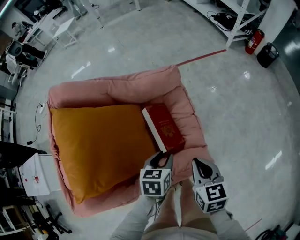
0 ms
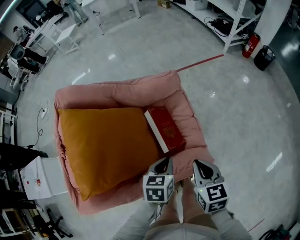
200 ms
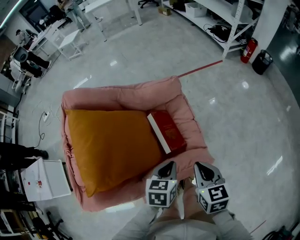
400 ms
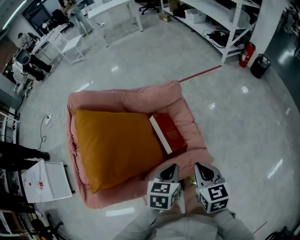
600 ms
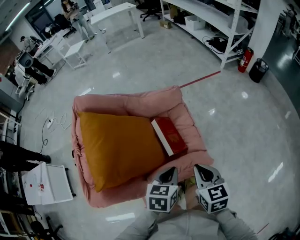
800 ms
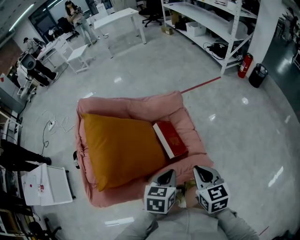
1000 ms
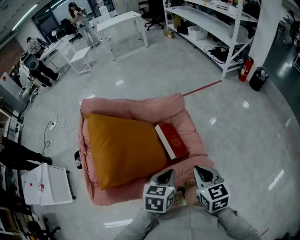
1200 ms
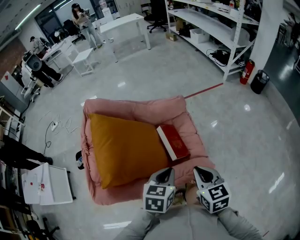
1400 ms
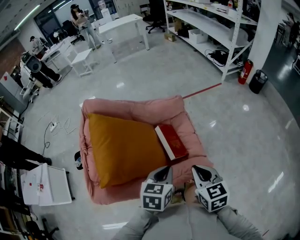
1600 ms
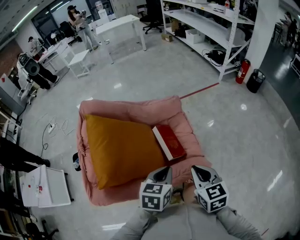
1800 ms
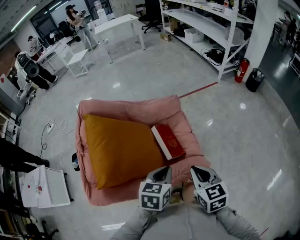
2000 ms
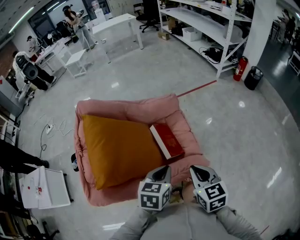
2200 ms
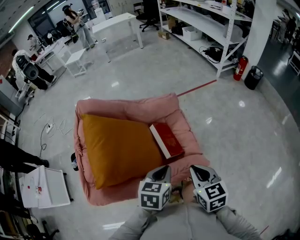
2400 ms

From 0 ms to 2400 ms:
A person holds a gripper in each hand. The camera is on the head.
From 0 ms to 1200 ms: The left gripper goes roughly 15 cm upward and backward, and closes; the right gripper moves upward and backward, approximately 10 cm.
From 1200 ms to 2400 ms: There are only small adjustments of the grippers.

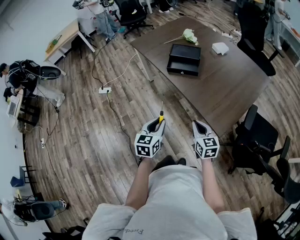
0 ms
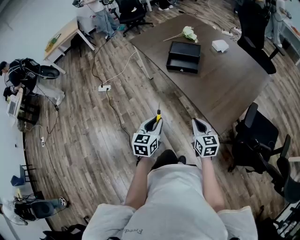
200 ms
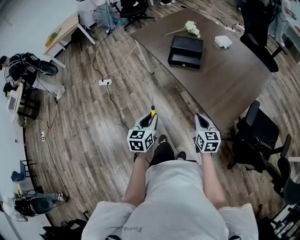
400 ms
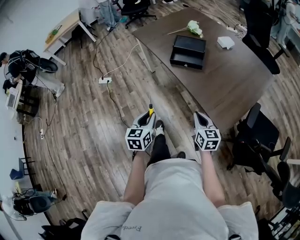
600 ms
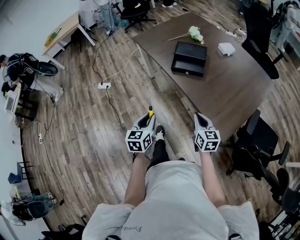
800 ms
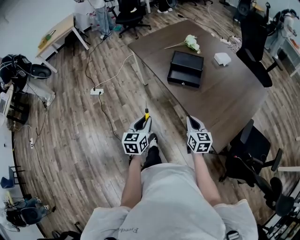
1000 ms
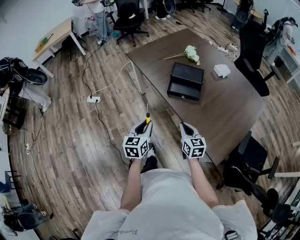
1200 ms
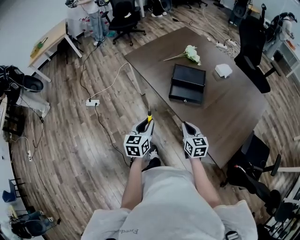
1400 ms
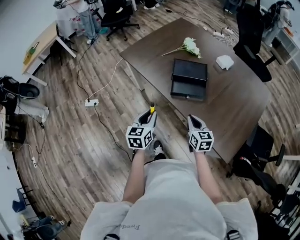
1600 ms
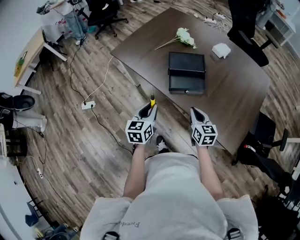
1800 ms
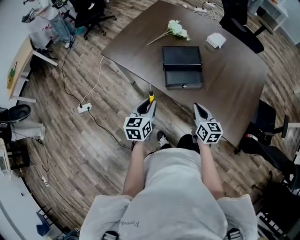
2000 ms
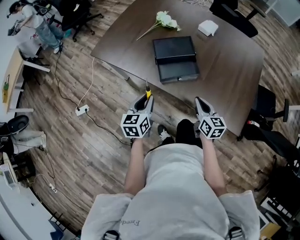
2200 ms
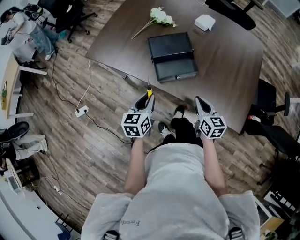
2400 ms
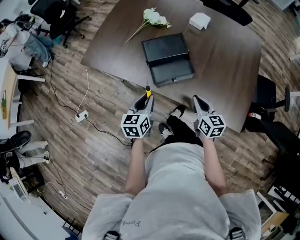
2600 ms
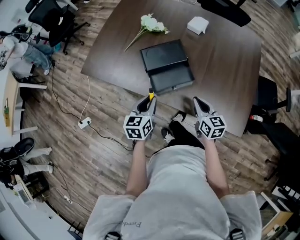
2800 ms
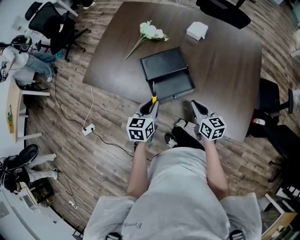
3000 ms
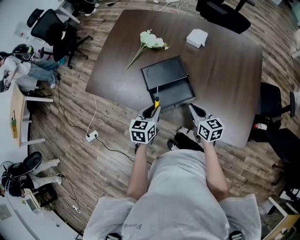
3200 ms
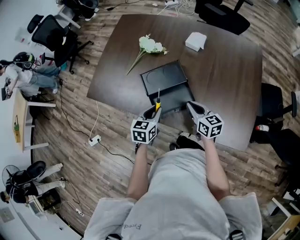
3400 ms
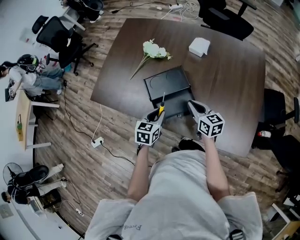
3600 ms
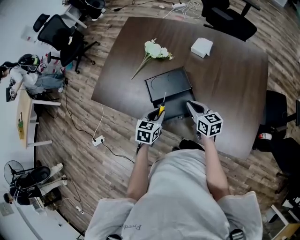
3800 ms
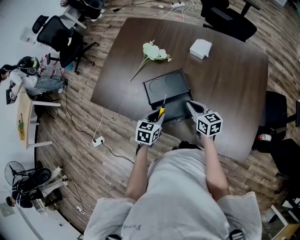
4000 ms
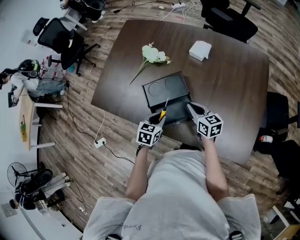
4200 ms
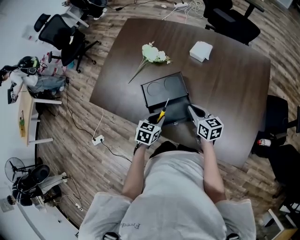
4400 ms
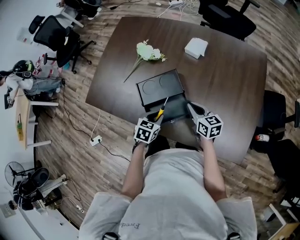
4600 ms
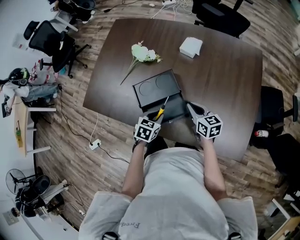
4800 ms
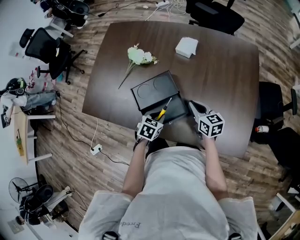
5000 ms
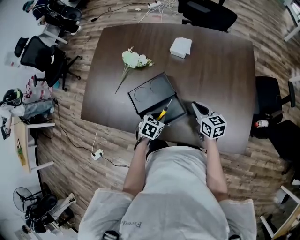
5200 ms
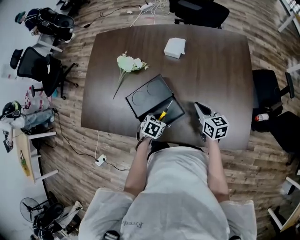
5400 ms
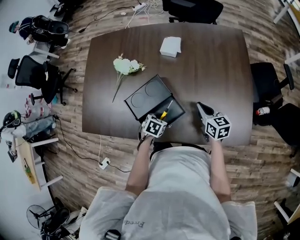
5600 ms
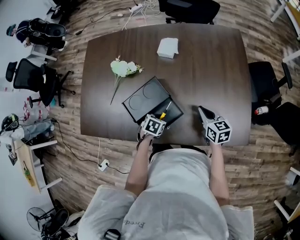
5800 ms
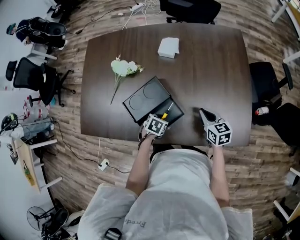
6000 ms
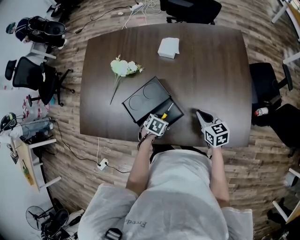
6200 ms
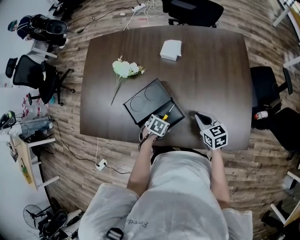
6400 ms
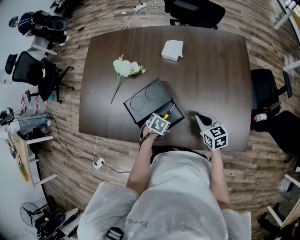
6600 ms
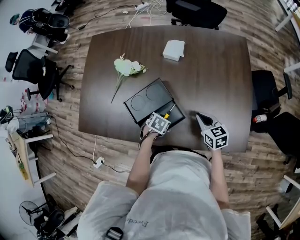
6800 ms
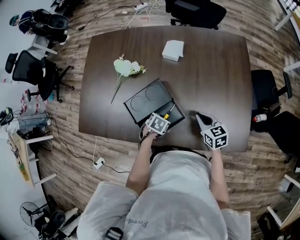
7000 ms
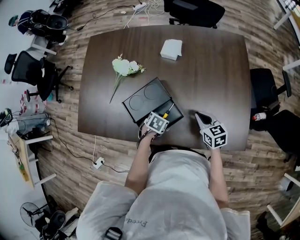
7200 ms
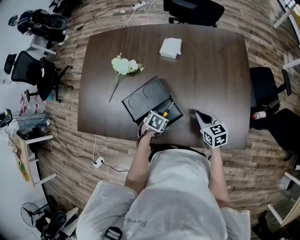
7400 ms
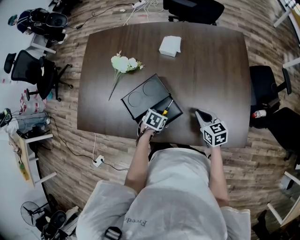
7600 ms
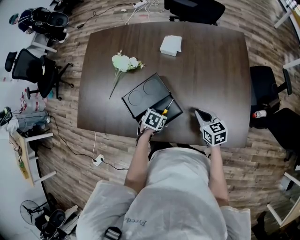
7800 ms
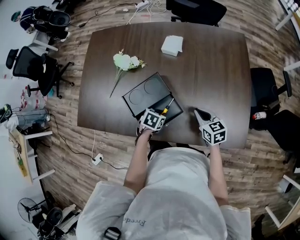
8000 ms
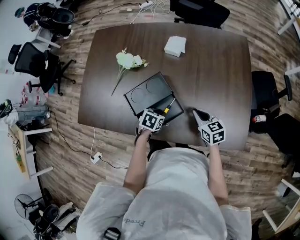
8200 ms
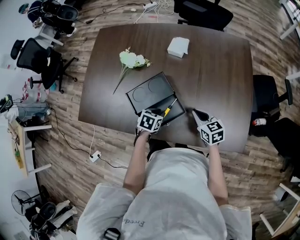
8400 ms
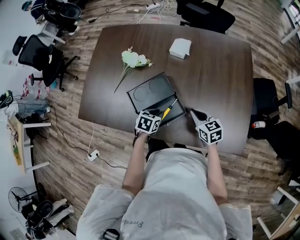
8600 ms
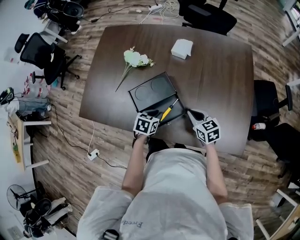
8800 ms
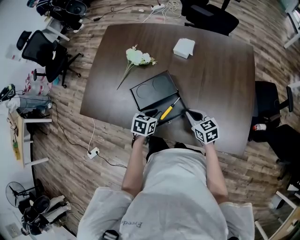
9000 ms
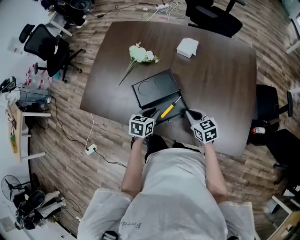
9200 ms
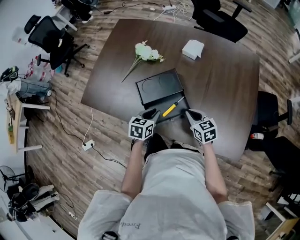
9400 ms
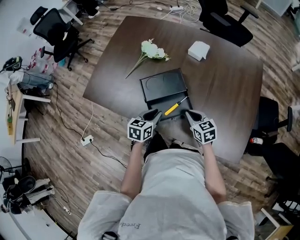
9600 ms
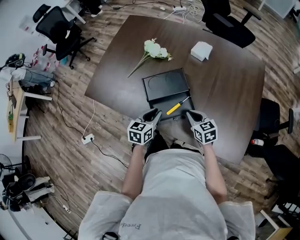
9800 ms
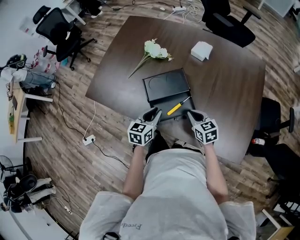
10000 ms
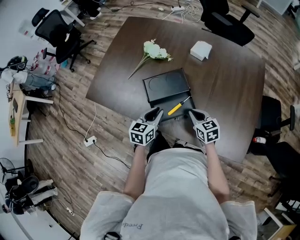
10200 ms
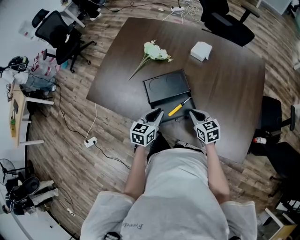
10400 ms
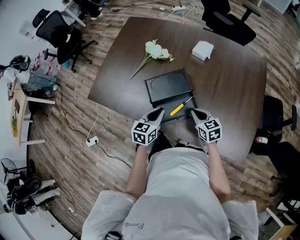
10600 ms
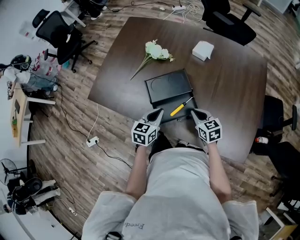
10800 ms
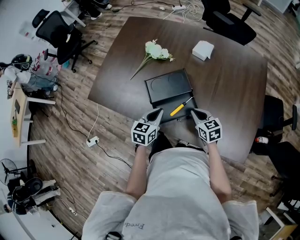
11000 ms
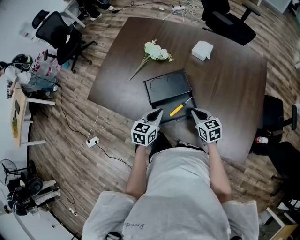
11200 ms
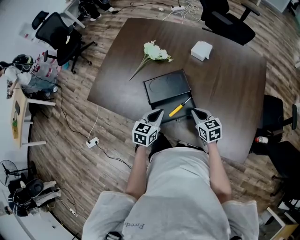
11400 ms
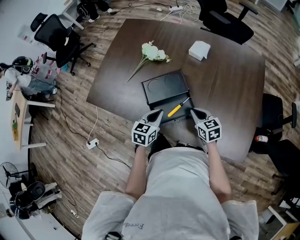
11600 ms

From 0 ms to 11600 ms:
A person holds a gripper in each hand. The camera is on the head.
From 0 ms to 1400 ms: Both grippers move forward and to the left, approximately 25 cm.
From 1400 ms to 2800 ms: The right gripper shifts by approximately 15 cm, and turns by roughly 30 degrees; the left gripper changes place by about 25 cm, and turns by approximately 30 degrees.
From 2800 ms to 4400 ms: The right gripper travels forward by roughly 15 cm, while the left gripper shifts about 15 cm forward, downward and to the right, and changes its angle by some 30 degrees.
From 4400 ms to 5800 ms: The right gripper shifts by about 10 cm, and rotates roughly 20 degrees. Meanwhile the left gripper goes some 10 cm downward, and swivels about 30 degrees.
From 5800 ms to 7200 ms: The grippers make only small movements.
From 7200 ms to 8800 ms: The left gripper shifts about 5 cm upward, and rotates about 20 degrees; the right gripper heads to the left, covering some 5 cm.
From 8800 ms to 10200 ms: The left gripper travels upward and to the left by roughly 10 cm, and swivels about 30 degrees. Meanwhile the right gripper changes place by roughly 5 cm.
From 10200 ms to 11600 ms: The grippers move only a little.

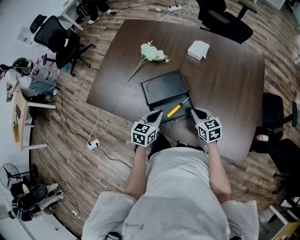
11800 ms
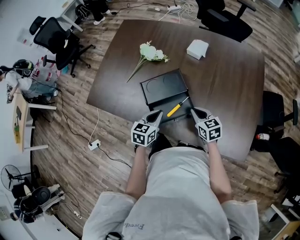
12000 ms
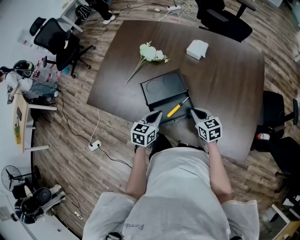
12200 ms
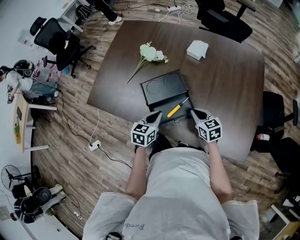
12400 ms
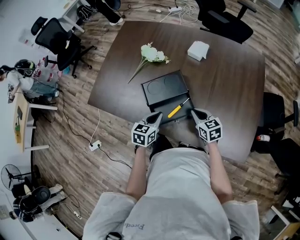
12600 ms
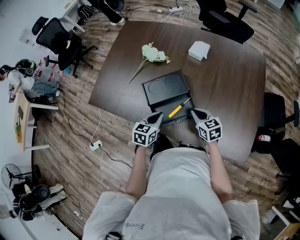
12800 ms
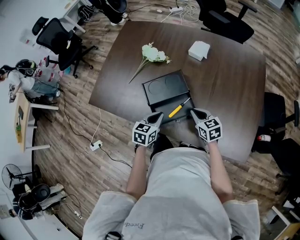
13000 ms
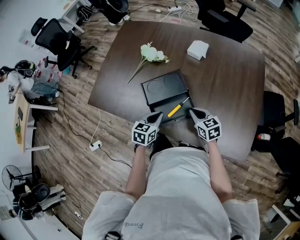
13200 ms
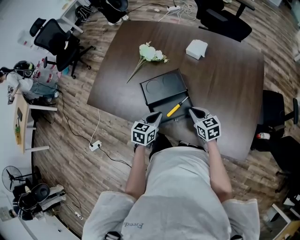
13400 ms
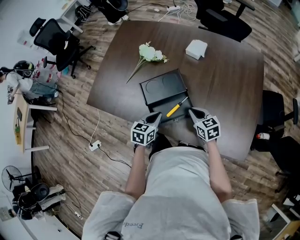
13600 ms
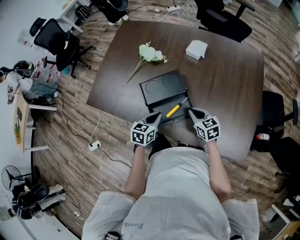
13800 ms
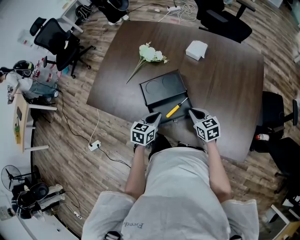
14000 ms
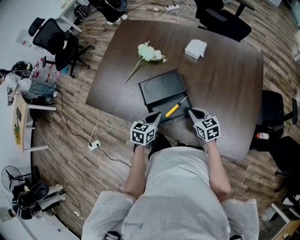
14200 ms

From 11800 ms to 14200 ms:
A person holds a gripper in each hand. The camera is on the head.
From 11800 ms to 13000 ms: There are only small adjustments of the grippers.
From 13000 ms to 14200 ms: The two grippers keep their place.

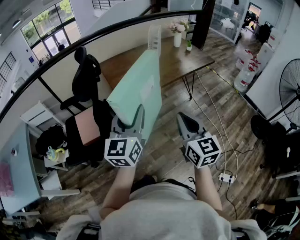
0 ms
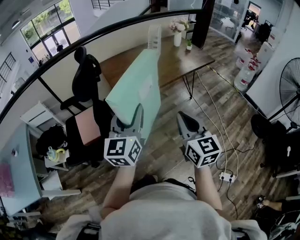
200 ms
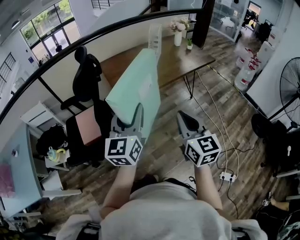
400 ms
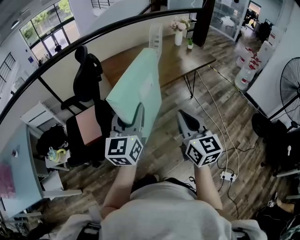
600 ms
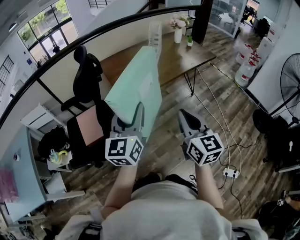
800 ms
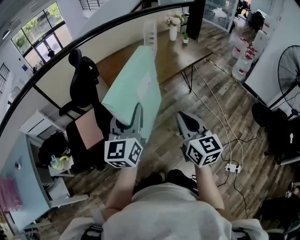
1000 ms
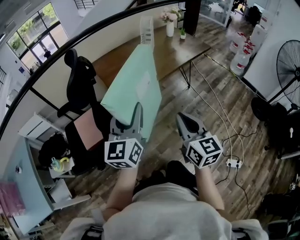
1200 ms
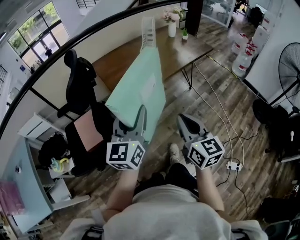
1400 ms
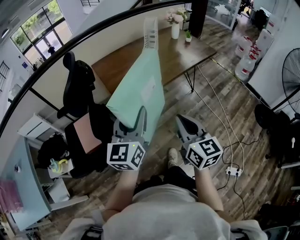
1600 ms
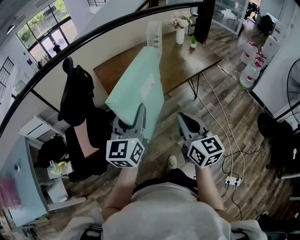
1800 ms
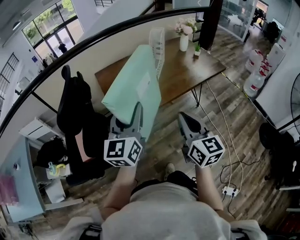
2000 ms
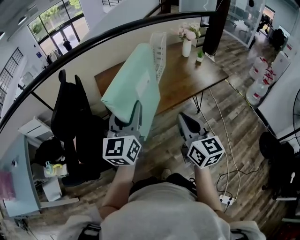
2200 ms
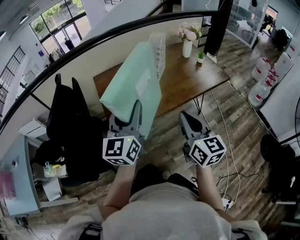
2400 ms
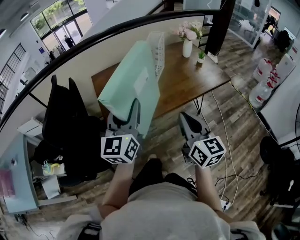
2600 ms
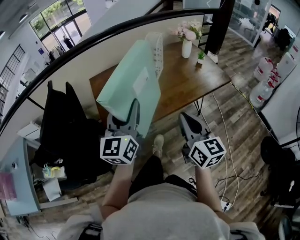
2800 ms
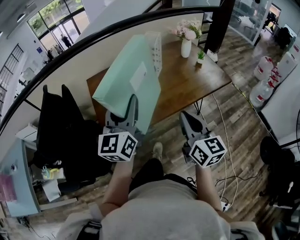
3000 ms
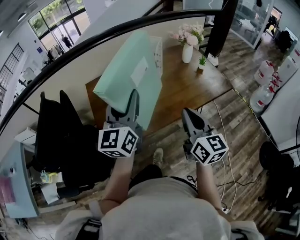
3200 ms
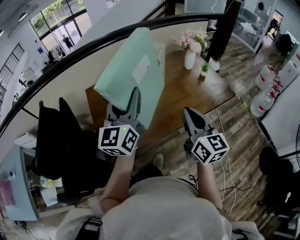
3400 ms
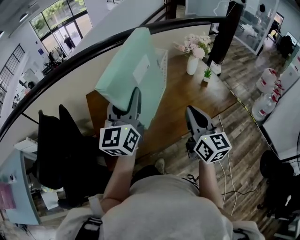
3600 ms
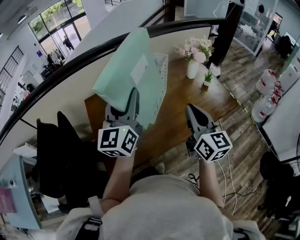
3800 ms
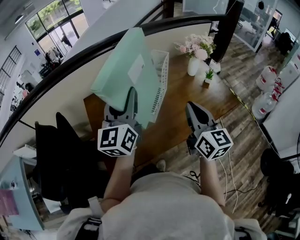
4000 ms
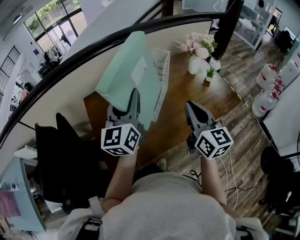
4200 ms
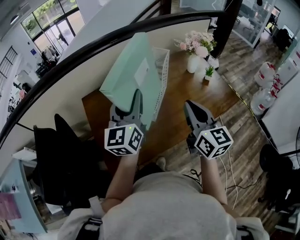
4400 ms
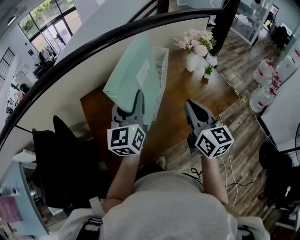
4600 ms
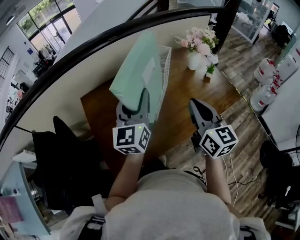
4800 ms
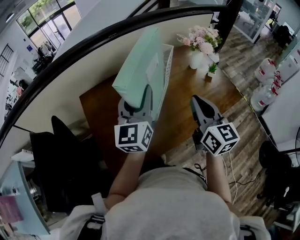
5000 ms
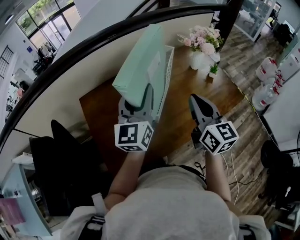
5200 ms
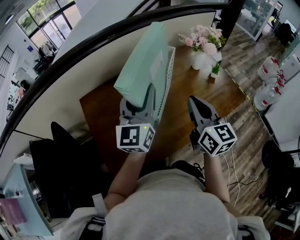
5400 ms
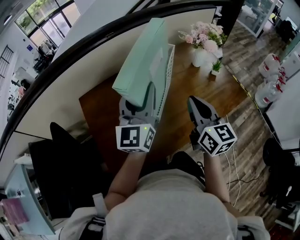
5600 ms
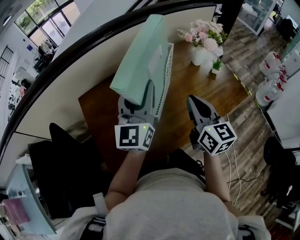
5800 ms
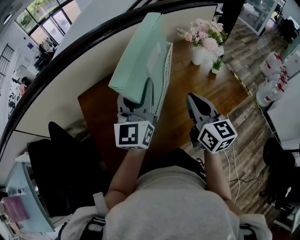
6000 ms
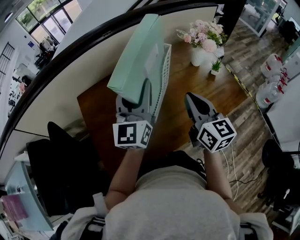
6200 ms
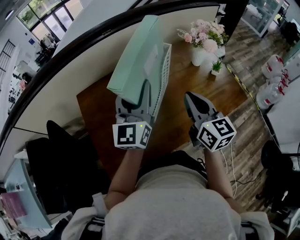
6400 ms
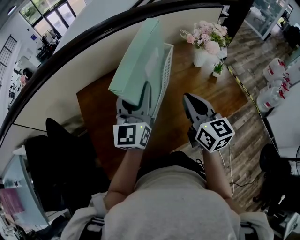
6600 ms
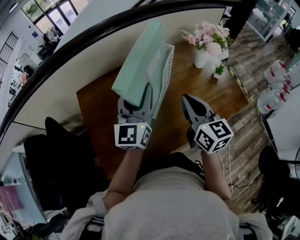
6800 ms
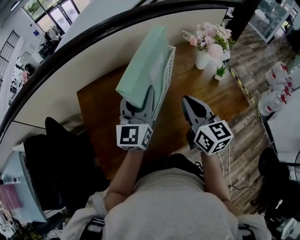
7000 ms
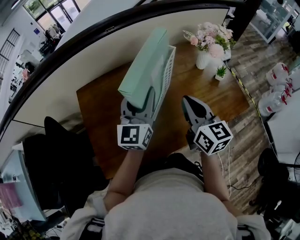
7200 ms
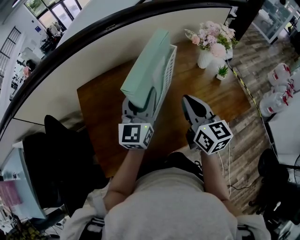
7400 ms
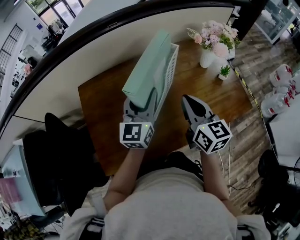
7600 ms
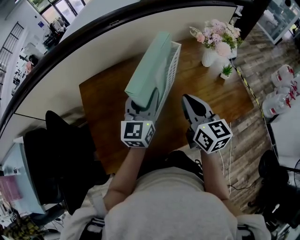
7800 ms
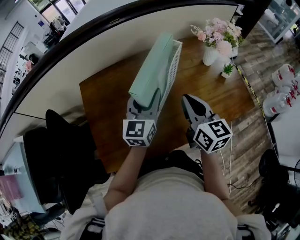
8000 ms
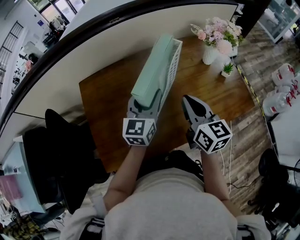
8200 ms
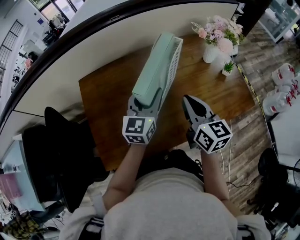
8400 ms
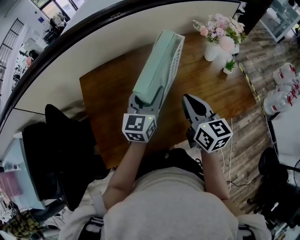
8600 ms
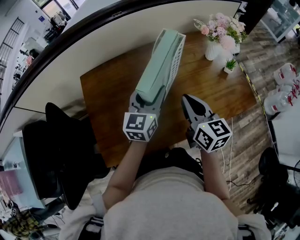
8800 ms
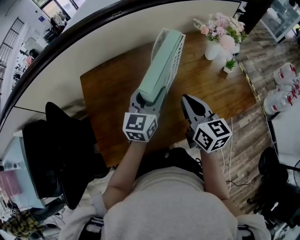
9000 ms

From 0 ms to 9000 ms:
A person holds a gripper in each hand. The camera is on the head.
From 0 ms to 1600 ms: Both grippers travel together forward, about 5 cm.
From 1600 ms to 3000 ms: Both grippers move forward and to the right, roughly 30 cm.
From 3000 ms to 4400 ms: Both grippers travel together forward, some 20 cm.
From 4400 ms to 6000 ms: The grippers both shift forward by about 5 cm.
From 6000 ms to 7600 ms: The right gripper changes place by approximately 5 cm, while the left gripper shifts about 10 cm downward.
From 7600 ms to 9000 ms: There are only small adjustments of the grippers.
